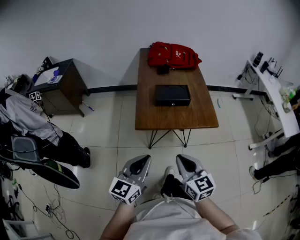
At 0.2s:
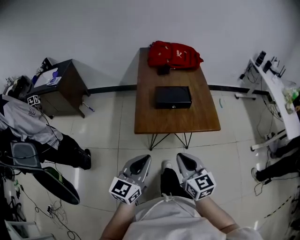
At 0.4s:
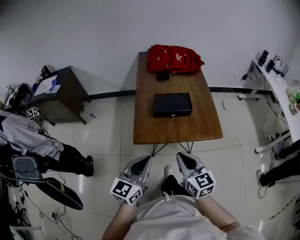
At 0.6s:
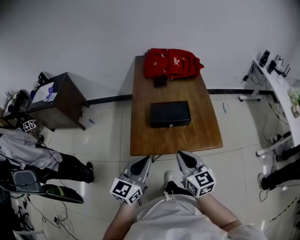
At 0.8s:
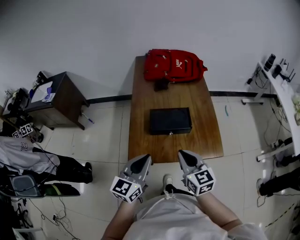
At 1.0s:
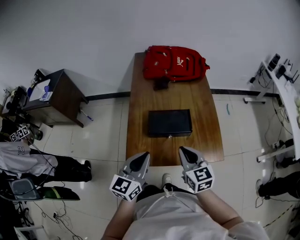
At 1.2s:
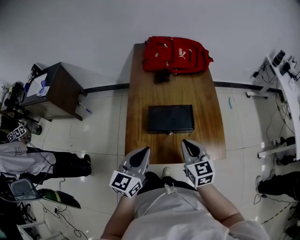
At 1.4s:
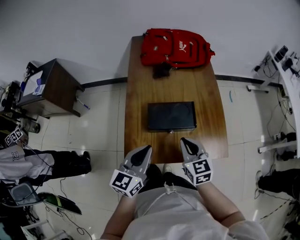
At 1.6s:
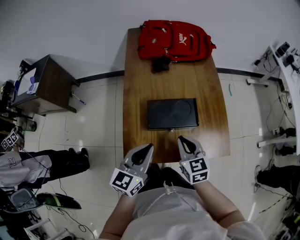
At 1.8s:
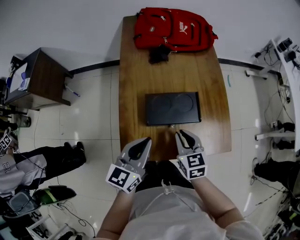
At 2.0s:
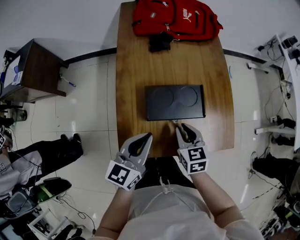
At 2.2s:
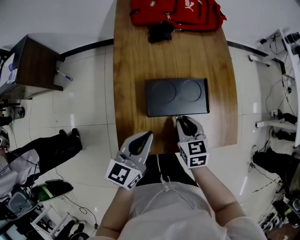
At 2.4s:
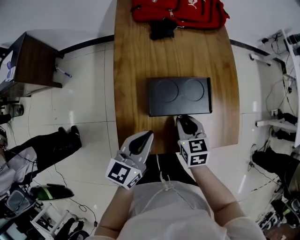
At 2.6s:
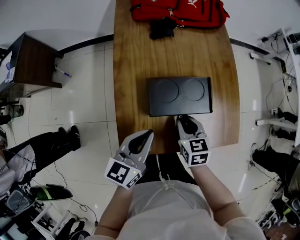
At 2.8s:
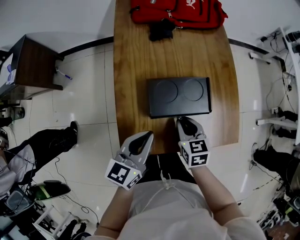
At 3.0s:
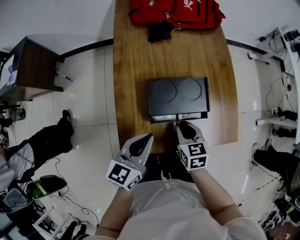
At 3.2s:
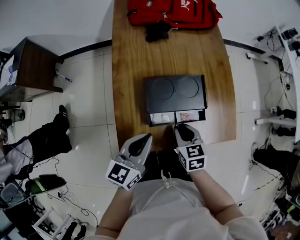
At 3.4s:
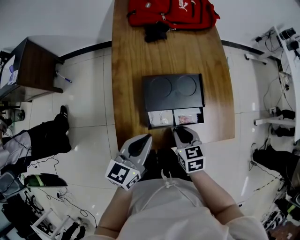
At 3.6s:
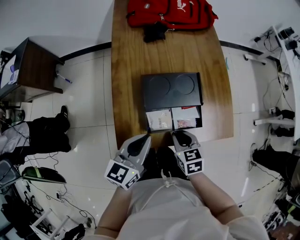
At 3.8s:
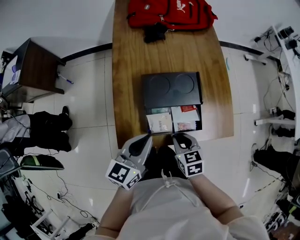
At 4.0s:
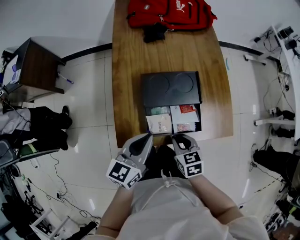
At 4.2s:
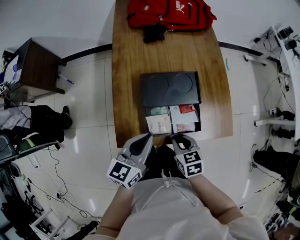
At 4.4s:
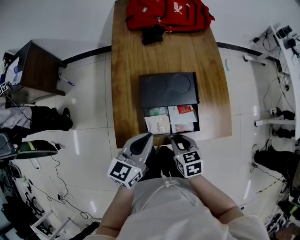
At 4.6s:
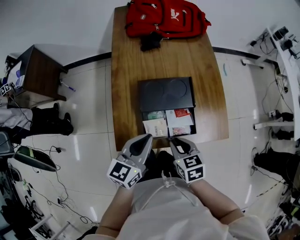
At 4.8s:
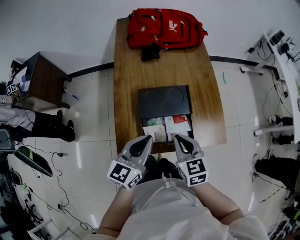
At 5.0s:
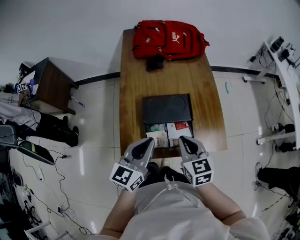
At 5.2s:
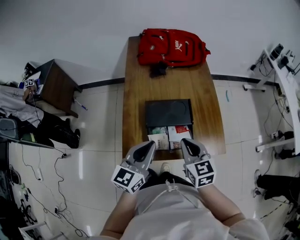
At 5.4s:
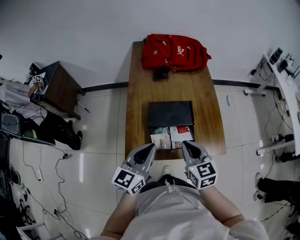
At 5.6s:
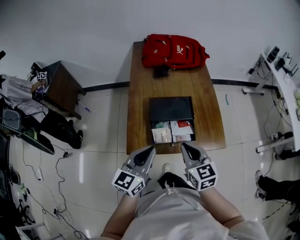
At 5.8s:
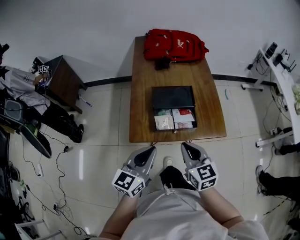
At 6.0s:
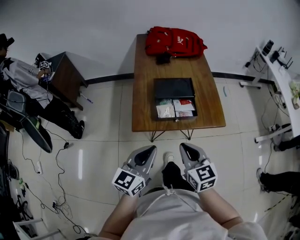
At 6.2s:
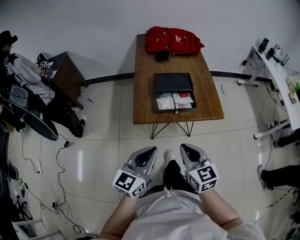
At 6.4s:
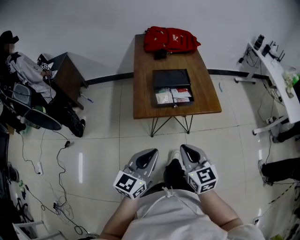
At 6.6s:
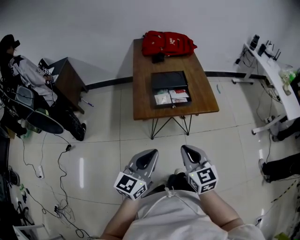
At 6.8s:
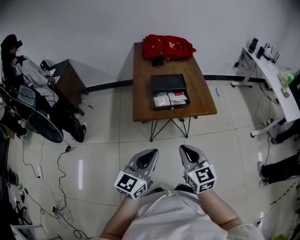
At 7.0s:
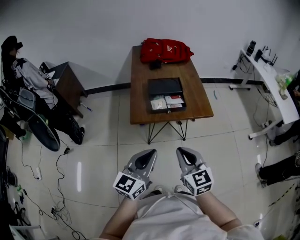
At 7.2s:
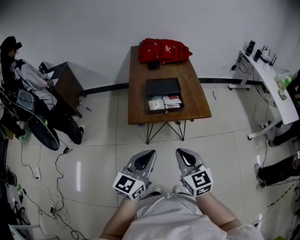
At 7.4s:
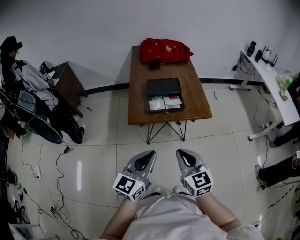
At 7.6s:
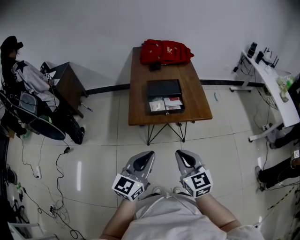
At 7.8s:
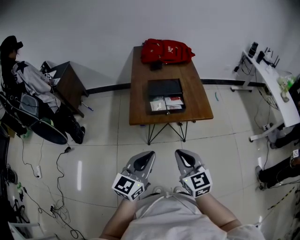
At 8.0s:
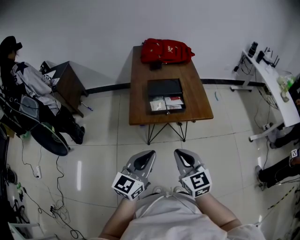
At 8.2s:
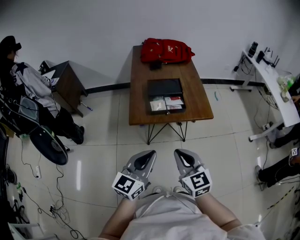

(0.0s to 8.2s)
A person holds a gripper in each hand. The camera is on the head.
0.0s - 1.6s: Both grippers move forward, roughly 35 cm.
1.6s - 3.2s: The grippers both shift downward by approximately 10 cm.
3.2s - 5.0s: The right gripper shifts roughly 15 cm upward. Meanwhile the left gripper heads upward, covering about 10 cm.
5.0s - 6.6s: The grippers both shift backward by roughly 35 cm.
6.6s - 8.2s: The grippers stay close to where they were, moving slightly.

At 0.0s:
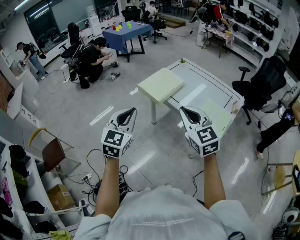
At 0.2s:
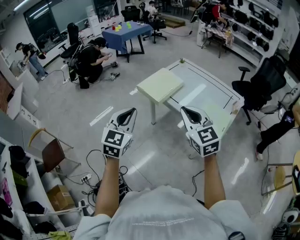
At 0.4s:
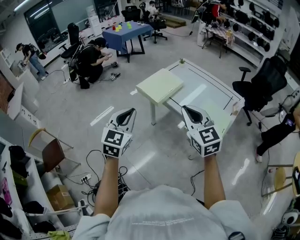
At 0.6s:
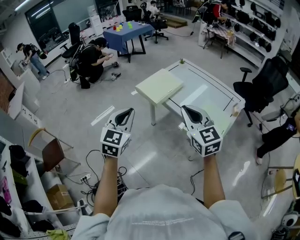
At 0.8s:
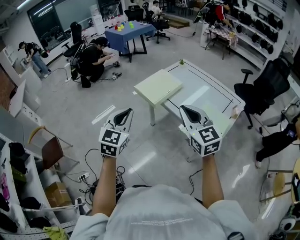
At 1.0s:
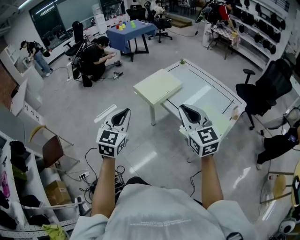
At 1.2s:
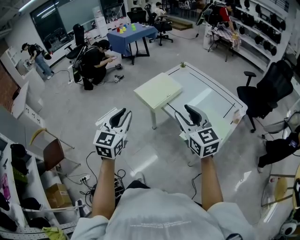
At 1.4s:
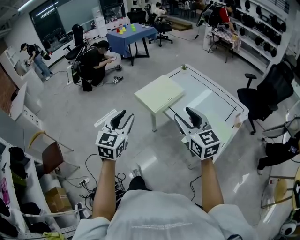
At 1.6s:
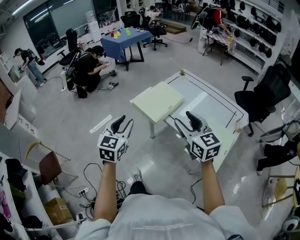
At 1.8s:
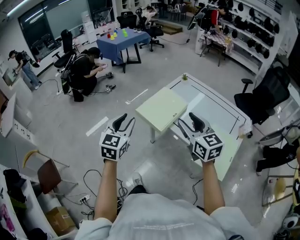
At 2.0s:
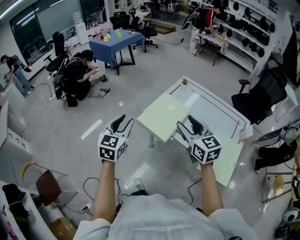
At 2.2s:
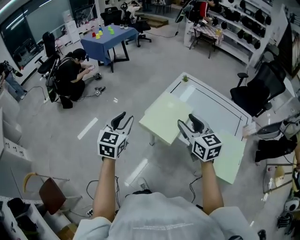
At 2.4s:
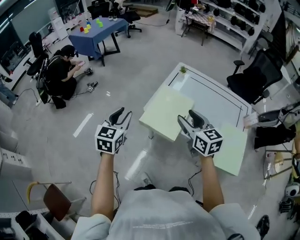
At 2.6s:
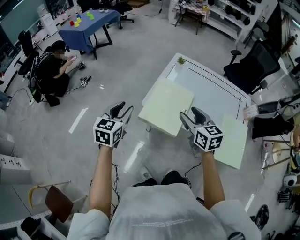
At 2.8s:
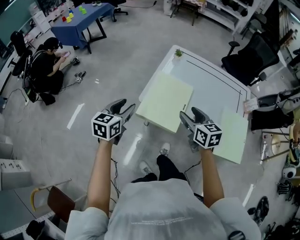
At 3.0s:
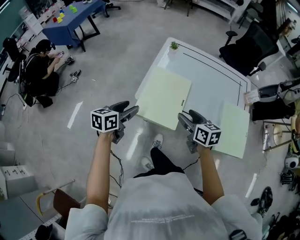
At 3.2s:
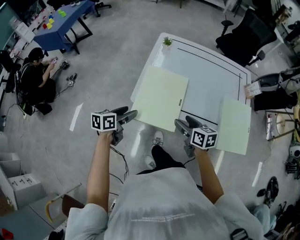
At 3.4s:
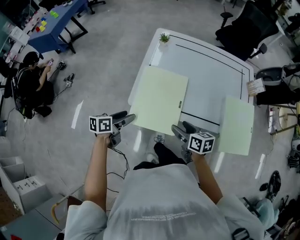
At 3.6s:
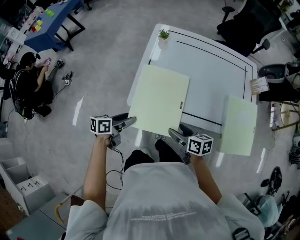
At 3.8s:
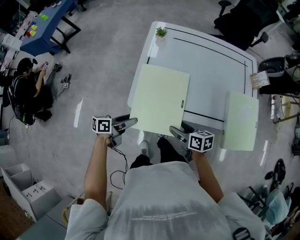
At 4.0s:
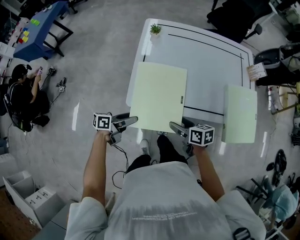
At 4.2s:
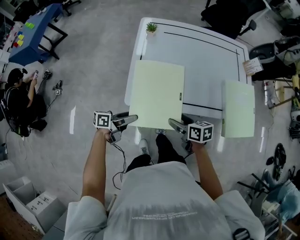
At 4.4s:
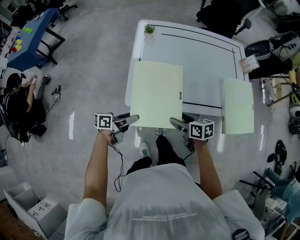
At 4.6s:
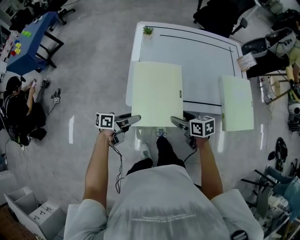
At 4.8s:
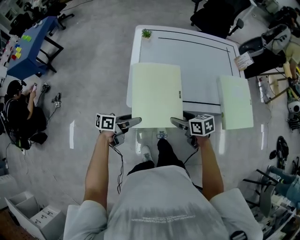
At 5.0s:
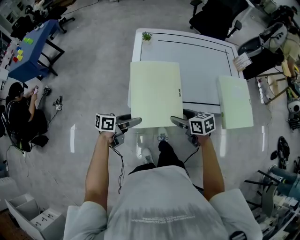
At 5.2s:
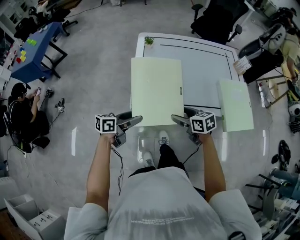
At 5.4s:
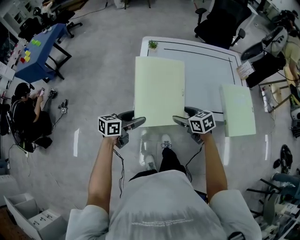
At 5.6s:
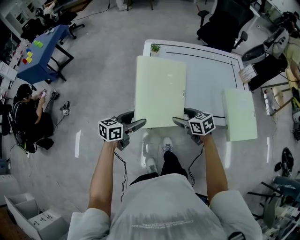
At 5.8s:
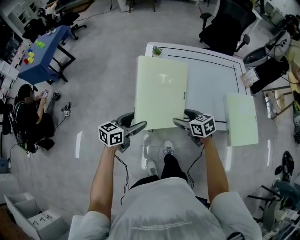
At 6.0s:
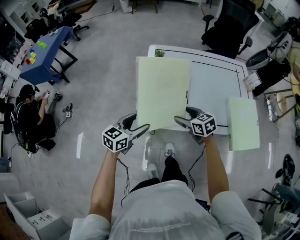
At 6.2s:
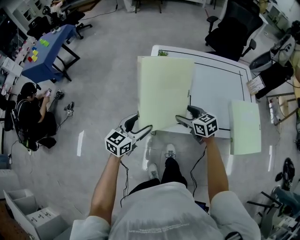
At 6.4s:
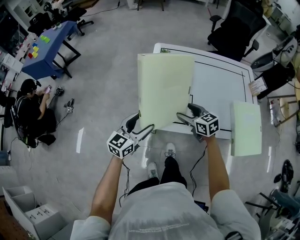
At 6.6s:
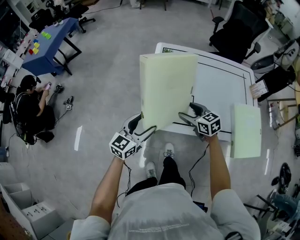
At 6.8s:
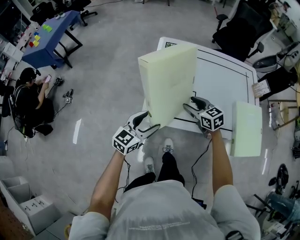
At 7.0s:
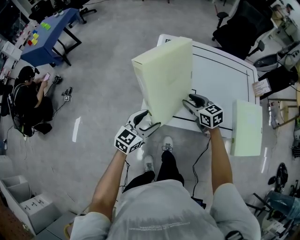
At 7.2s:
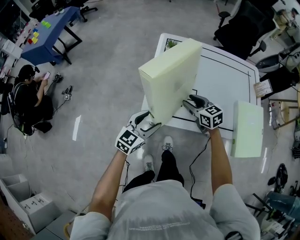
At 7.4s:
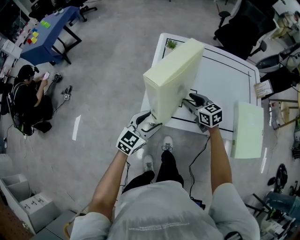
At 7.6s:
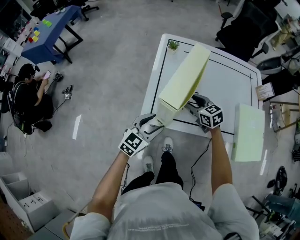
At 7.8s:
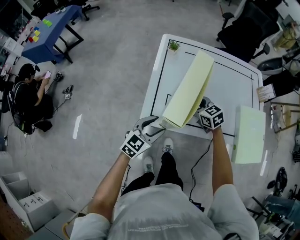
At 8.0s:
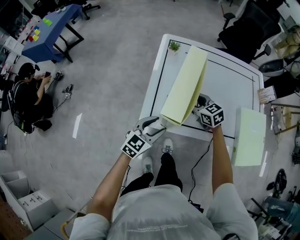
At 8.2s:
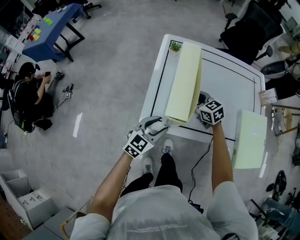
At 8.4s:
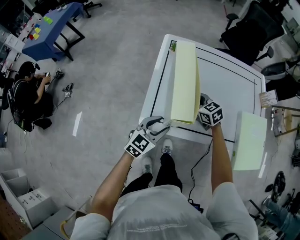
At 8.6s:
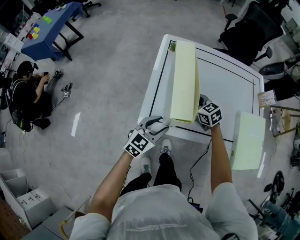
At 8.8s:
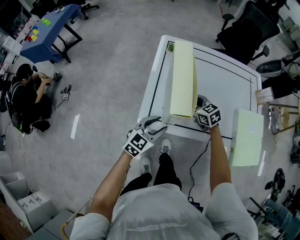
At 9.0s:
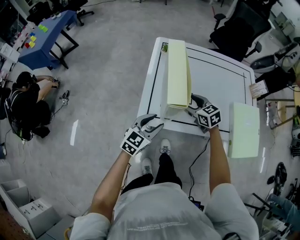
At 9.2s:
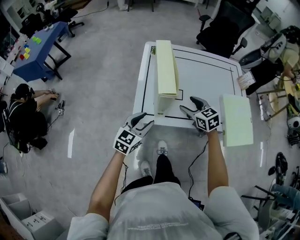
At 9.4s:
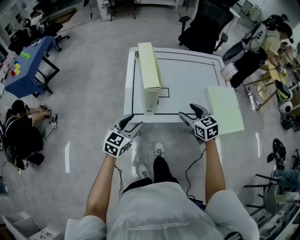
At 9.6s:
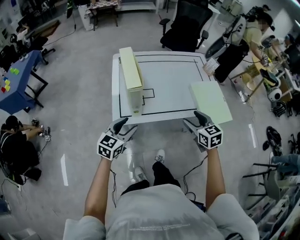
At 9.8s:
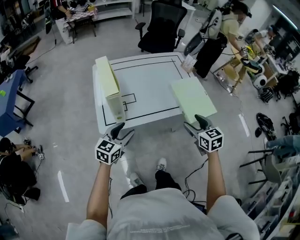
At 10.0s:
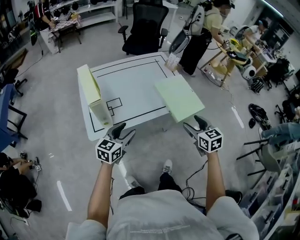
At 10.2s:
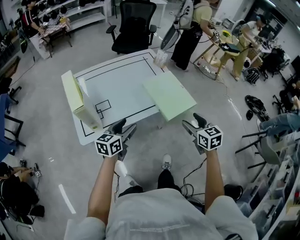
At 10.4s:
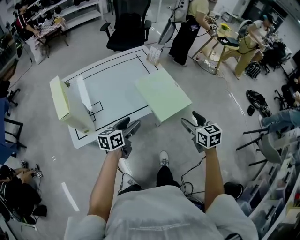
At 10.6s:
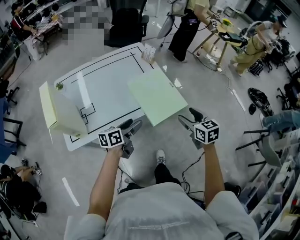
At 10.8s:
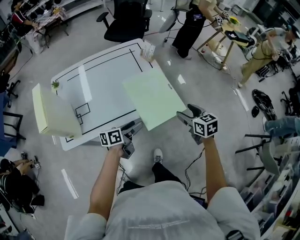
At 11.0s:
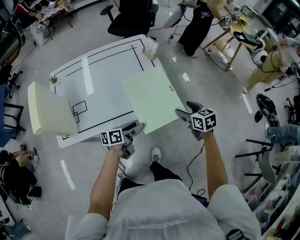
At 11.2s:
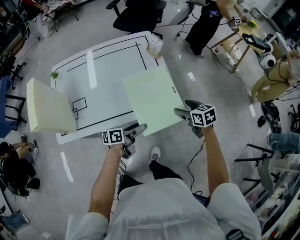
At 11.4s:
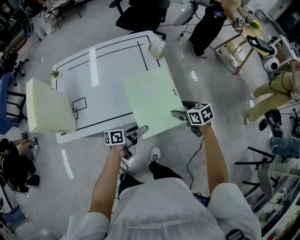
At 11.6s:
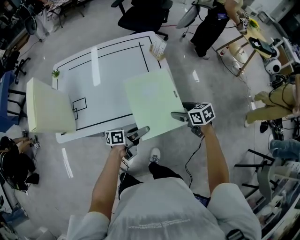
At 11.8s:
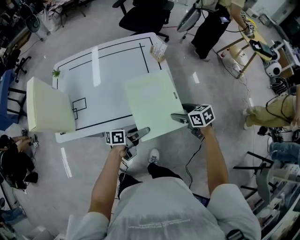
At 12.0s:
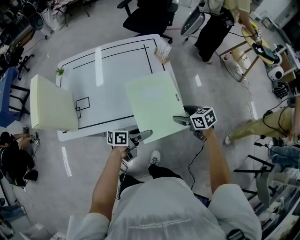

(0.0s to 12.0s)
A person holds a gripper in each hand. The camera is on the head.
0.0s - 1.6s: Both grippers move forward, approximately 15 cm. The left gripper opens, while the right gripper opens up.
1.6s - 3.0s: The right gripper ends up about 30 cm from where it was, and swivels some 40 degrees; the left gripper shifts by approximately 35 cm, and swivels roughly 50 degrees.
3.0s - 4.4s: Both grippers travel together downward, about 15 cm. The left gripper turns by about 50 degrees; the right gripper turns by about 20 degrees.
4.4s - 6.0s: The right gripper shifts roughly 10 cm forward, and rotates about 30 degrees; the left gripper moves upward and forward, approximately 10 cm, and rotates around the line of its fingers by approximately 50 degrees, clockwise from behind.
6.0s - 7.6s: The right gripper shifts some 10 cm forward; the left gripper goes roughly 5 cm to the right.
7.6s - 9.0s: The grippers move only a little.
9.0s - 10.4s: The left gripper ends up about 30 cm from where it was, and changes its angle by approximately 40 degrees, while the right gripper changes place by approximately 50 cm, and changes its angle by roughly 50 degrees.
10.4s - 12.0s: The left gripper travels to the right, downward and forward by some 20 cm, and rotates about 30 degrees. The right gripper goes approximately 25 cm forward and downward, and swivels roughly 40 degrees.

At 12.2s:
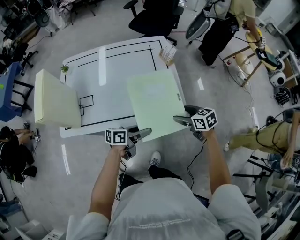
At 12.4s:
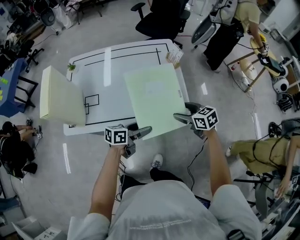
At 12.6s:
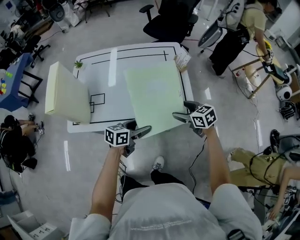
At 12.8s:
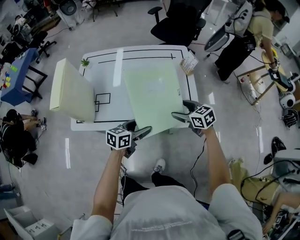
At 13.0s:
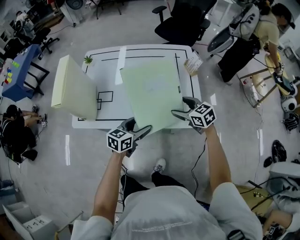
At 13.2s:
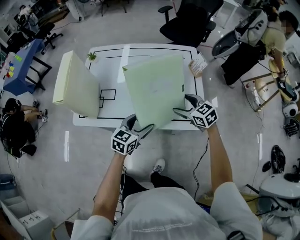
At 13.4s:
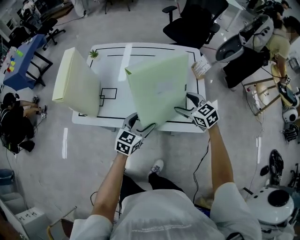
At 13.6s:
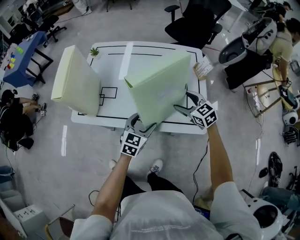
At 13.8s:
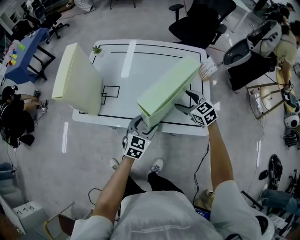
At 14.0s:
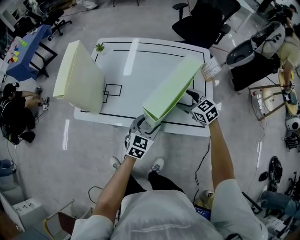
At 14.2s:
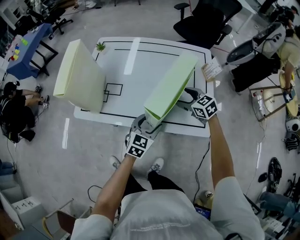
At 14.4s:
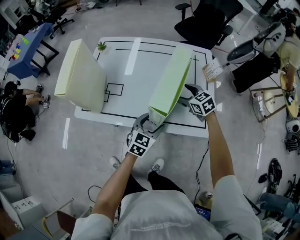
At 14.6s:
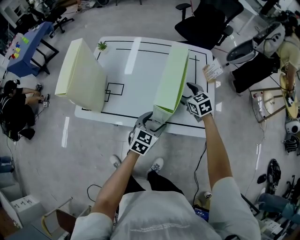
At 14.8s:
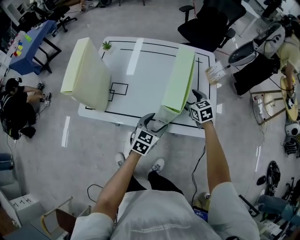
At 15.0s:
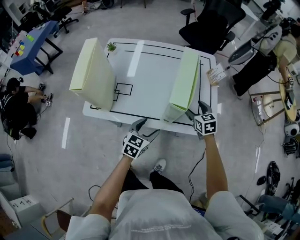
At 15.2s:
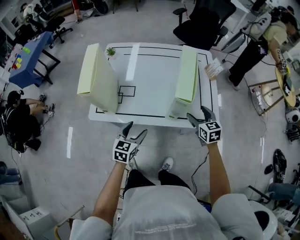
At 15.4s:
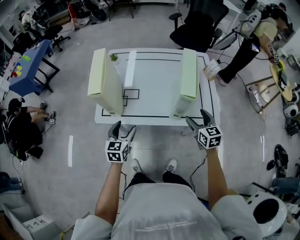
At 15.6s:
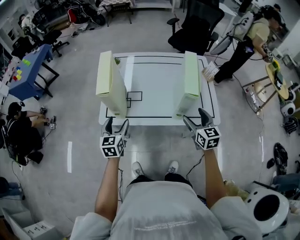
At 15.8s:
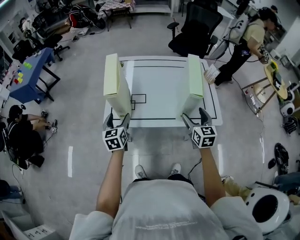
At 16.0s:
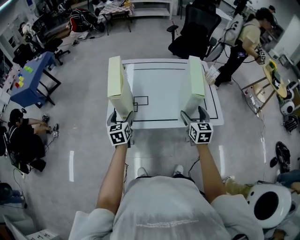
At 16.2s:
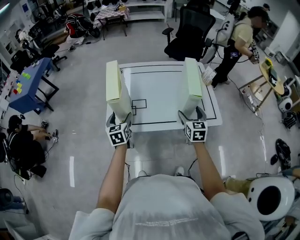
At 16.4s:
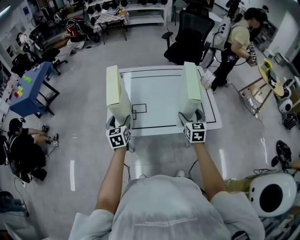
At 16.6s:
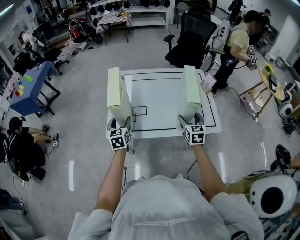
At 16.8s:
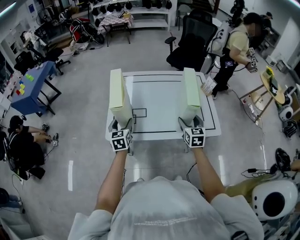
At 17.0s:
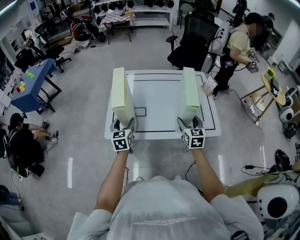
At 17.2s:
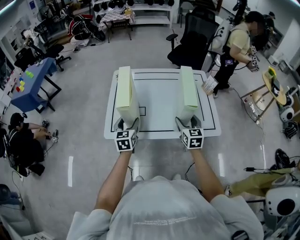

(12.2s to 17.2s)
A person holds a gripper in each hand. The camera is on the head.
12.2s - 13.8s: The left gripper shifts roughly 10 cm to the left and forward, and swivels some 70 degrees. Meanwhile the right gripper shifts approximately 20 cm forward and to the left, and turns by about 30 degrees.
13.8s - 15.6s: The right gripper goes approximately 20 cm backward, upward and to the left, and rotates approximately 40 degrees. The left gripper travels to the left by about 30 cm, and turns by some 20 degrees.
15.6s - 17.2s: Both grippers travel together forward, some 5 cm.
